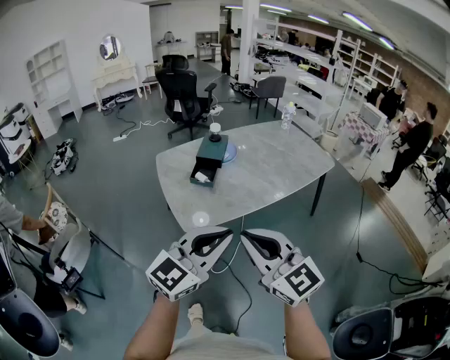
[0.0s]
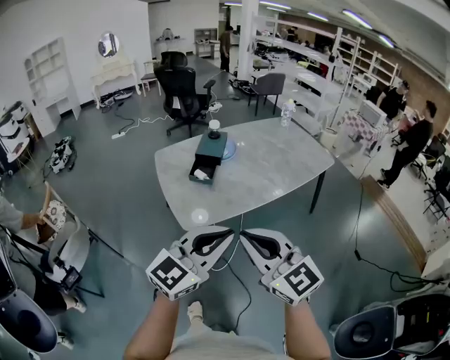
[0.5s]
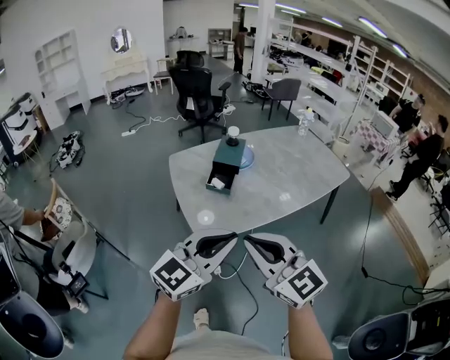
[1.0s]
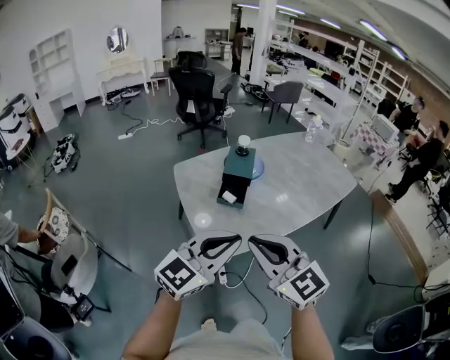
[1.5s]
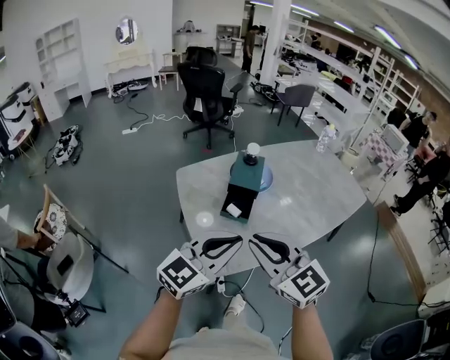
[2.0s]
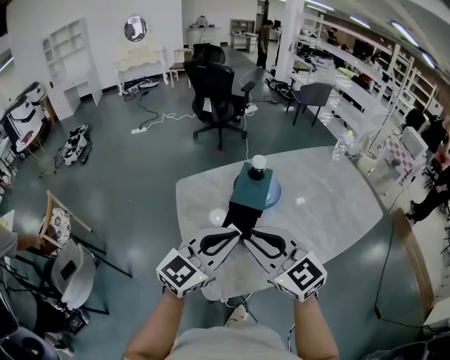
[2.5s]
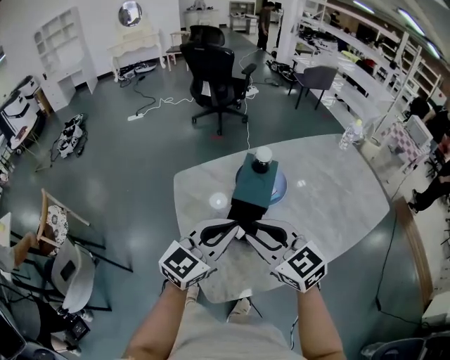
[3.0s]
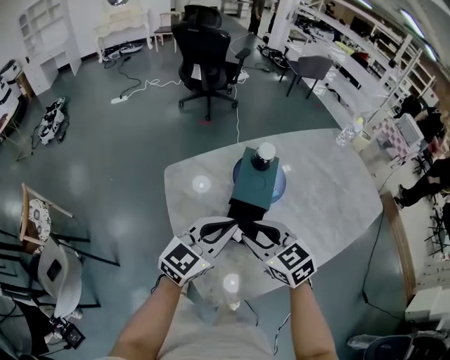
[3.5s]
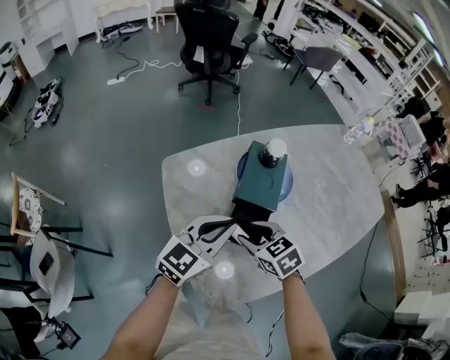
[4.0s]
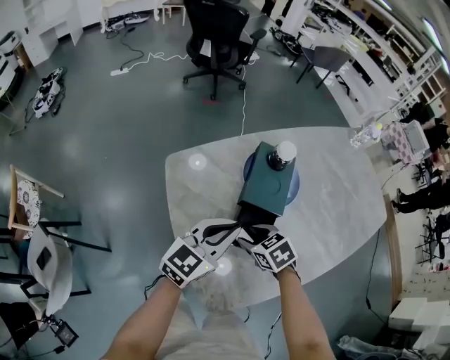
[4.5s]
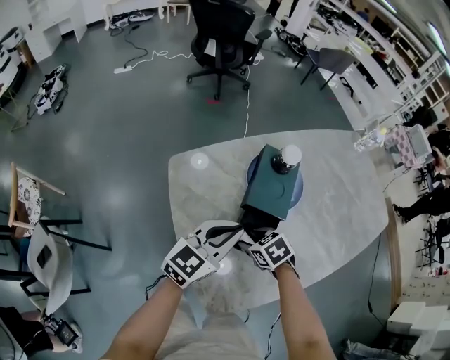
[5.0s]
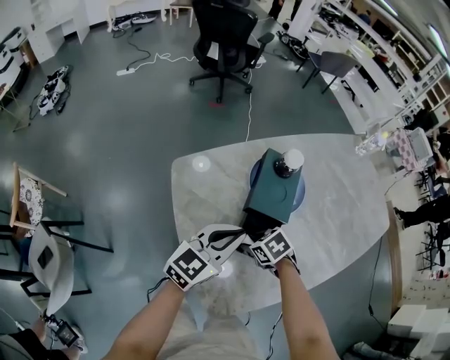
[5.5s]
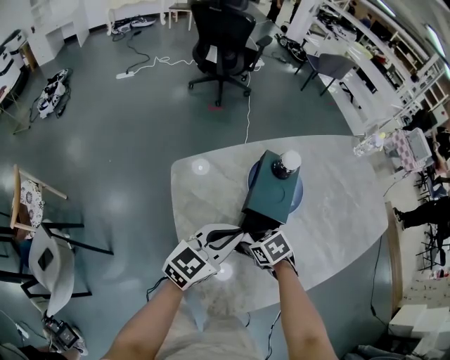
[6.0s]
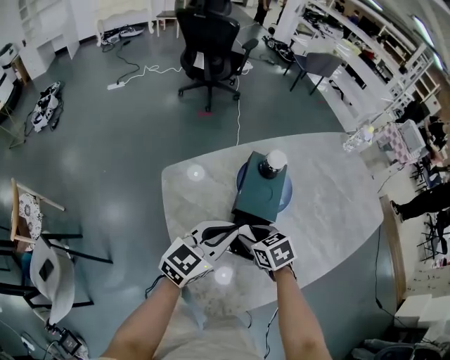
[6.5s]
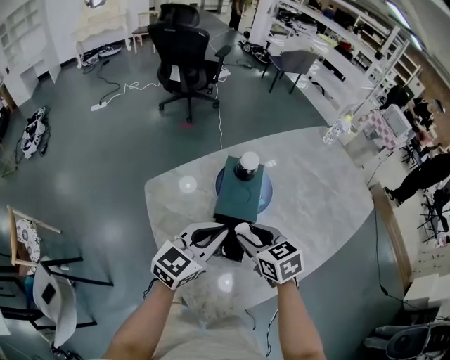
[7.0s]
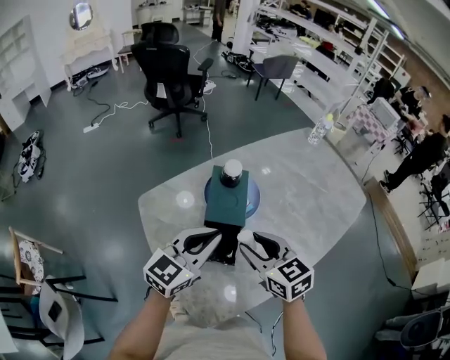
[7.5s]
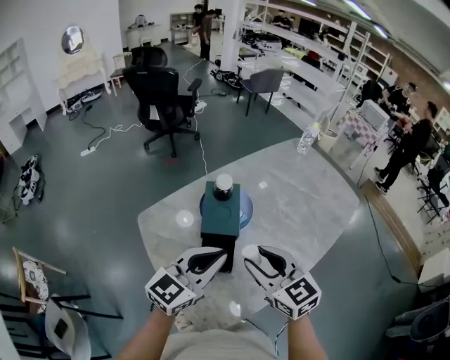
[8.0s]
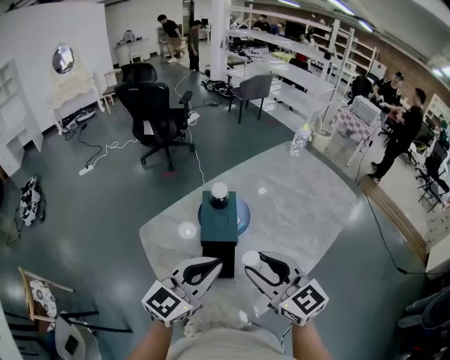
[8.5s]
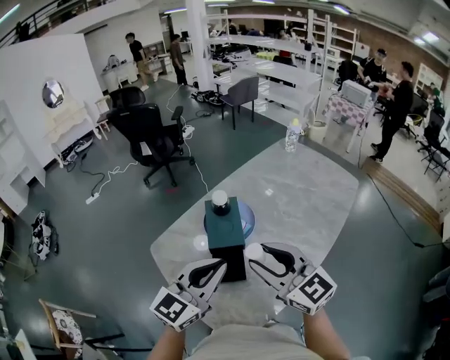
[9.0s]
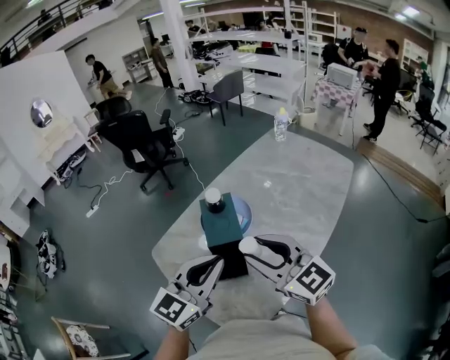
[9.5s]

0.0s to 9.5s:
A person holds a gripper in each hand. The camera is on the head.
0.0s to 2.0s: Both grippers travel together forward and to the left, some 30 cm.
2.0s to 4.0s: The grippers both shift forward and downward by roughly 35 cm. The right gripper tilts its fingers some 40 degrees downward, and opens up.
4.0s to 5.5s: The right gripper goes some 10 cm downward, and rotates approximately 30 degrees.
5.5s to 7.5s: The right gripper is displaced upward by some 20 cm, and angles its fingers upward, by some 40 degrees. The left gripper shifts roughly 10 cm upward.
7.5s to 9.5s: The grippers both shift upward and backward by roughly 10 cm. The right gripper turns by about 30 degrees.

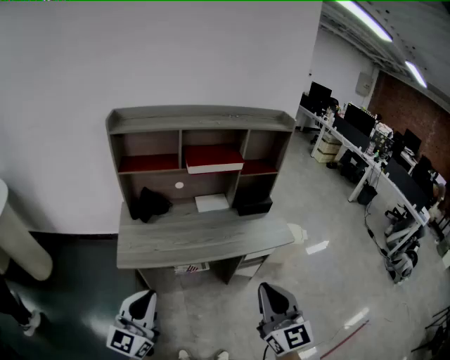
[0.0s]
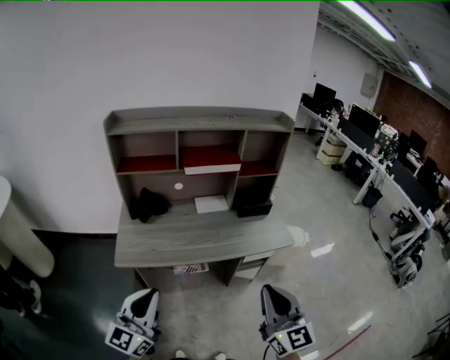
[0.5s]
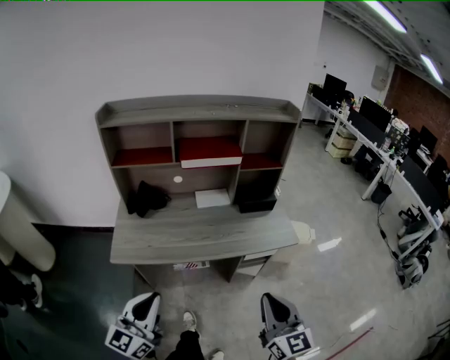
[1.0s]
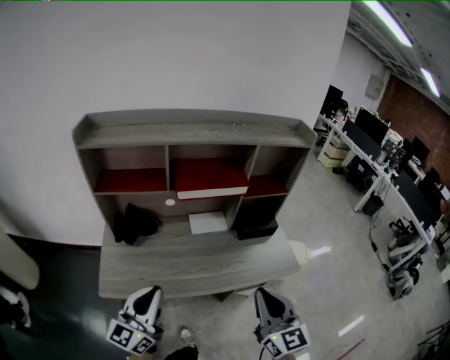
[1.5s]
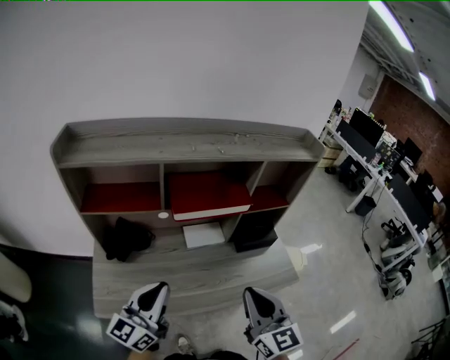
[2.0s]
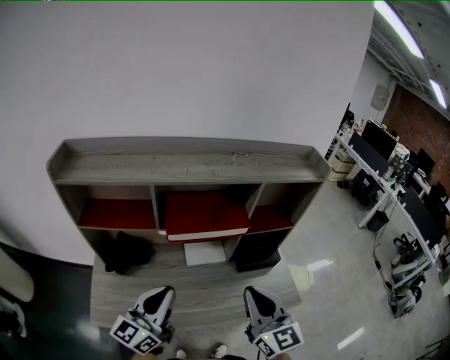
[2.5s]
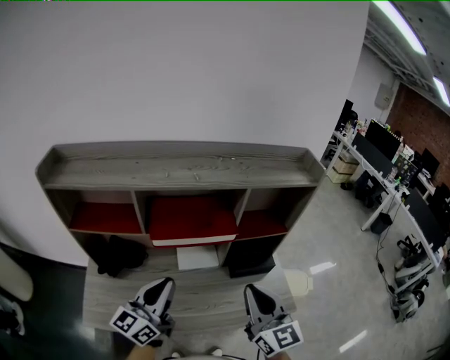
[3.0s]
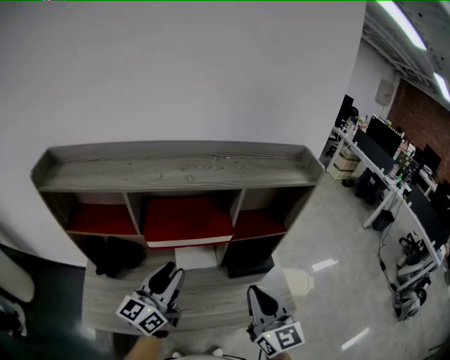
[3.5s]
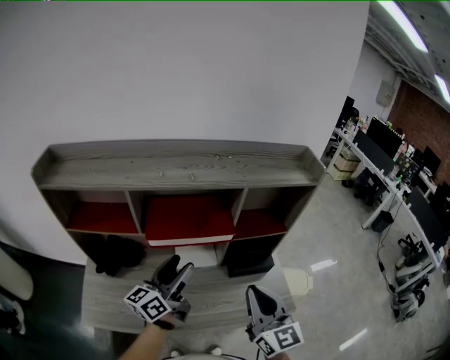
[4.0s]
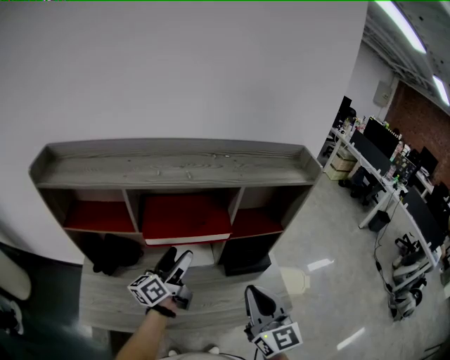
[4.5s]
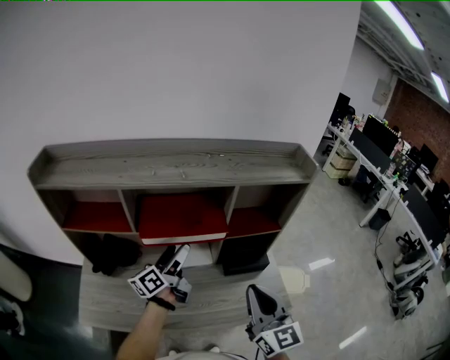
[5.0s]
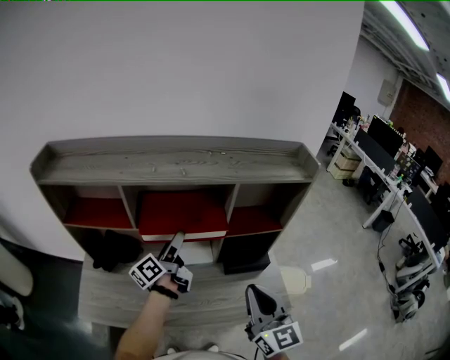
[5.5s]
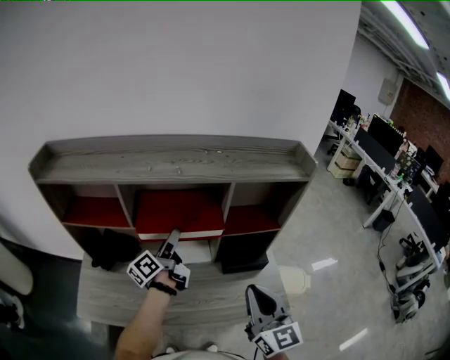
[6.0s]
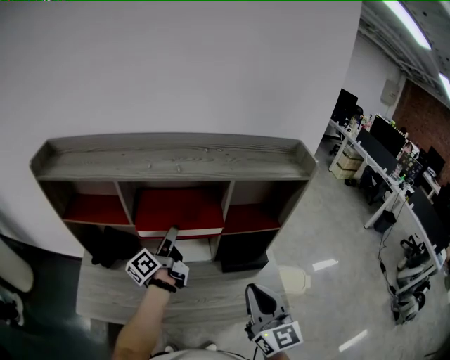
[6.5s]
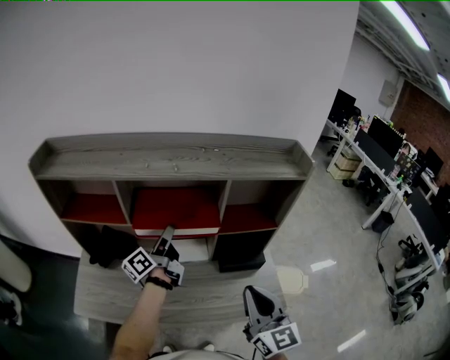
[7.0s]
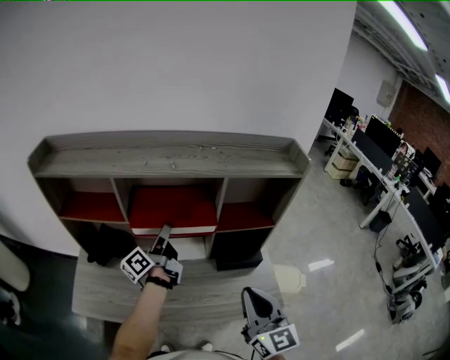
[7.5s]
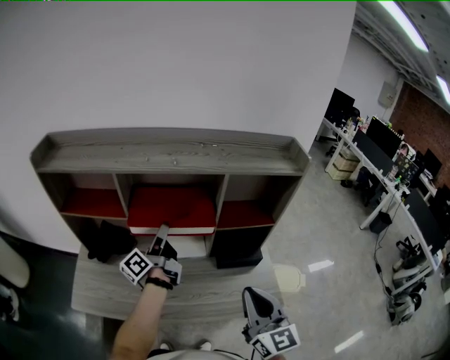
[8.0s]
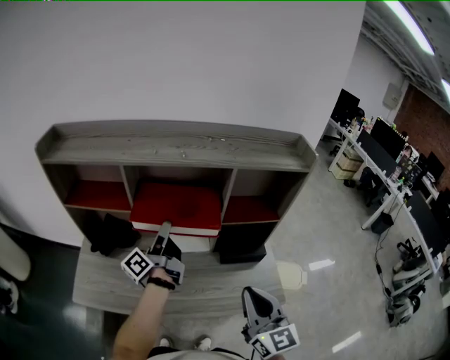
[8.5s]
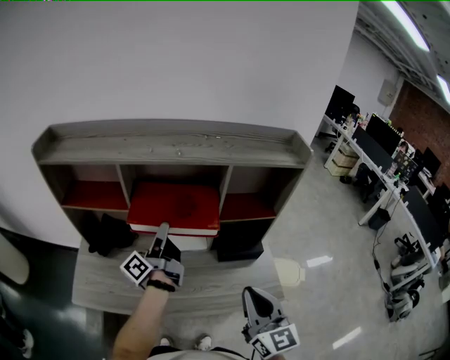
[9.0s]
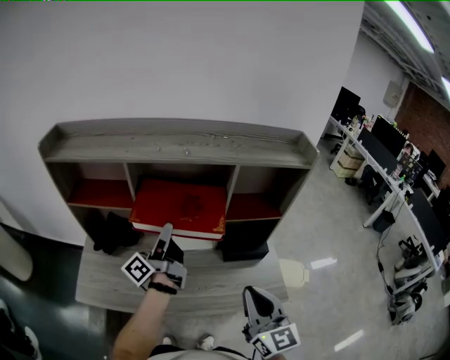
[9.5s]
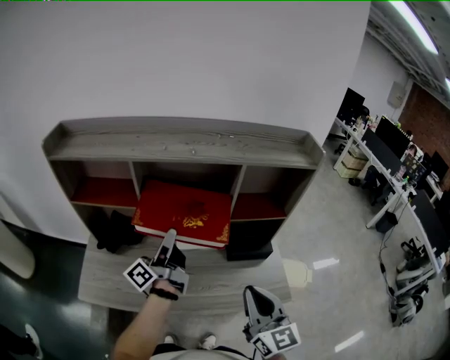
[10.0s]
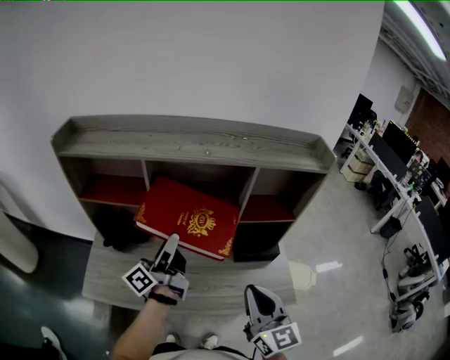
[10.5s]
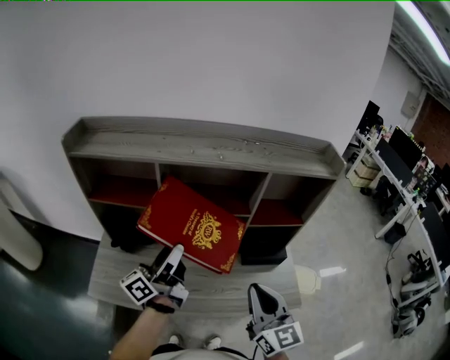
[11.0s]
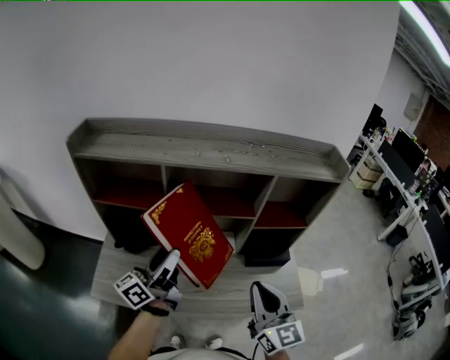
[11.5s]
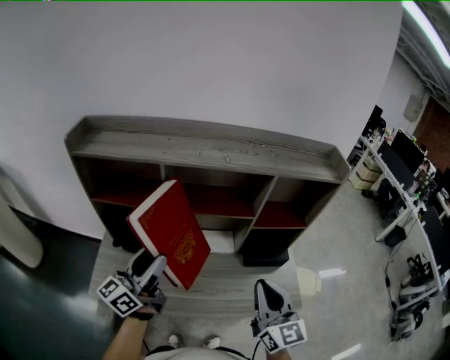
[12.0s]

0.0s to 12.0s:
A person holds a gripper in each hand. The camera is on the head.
0.0s to 2.0s: Both grippers travel together forward, about 25 cm.
2.0s to 4.0s: Both grippers move forward and to the right, about 15 cm. The left gripper opens up.
4.0s to 6.0s: The left gripper heads forward, covering approximately 10 cm, swivels roughly 30 degrees, and opens.
6.0s to 8.0s: The left gripper closes.
8.0s to 10.0s: The left gripper is displaced backward by approximately 5 cm.
10.0s to 12.0s: The left gripper goes some 15 cm to the left and backward, and changes its angle by roughly 40 degrees, while the right gripper moves roughly 5 cm.

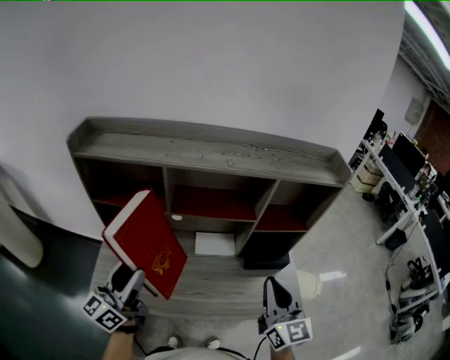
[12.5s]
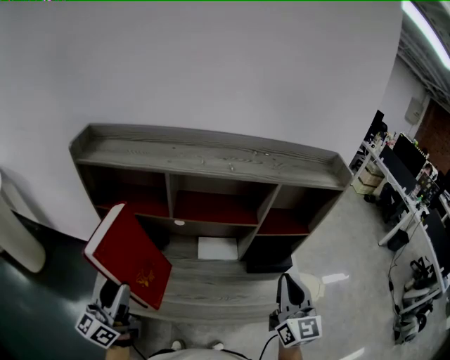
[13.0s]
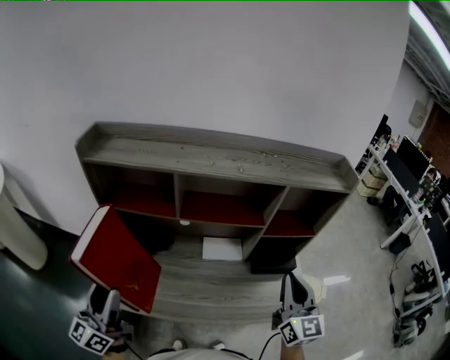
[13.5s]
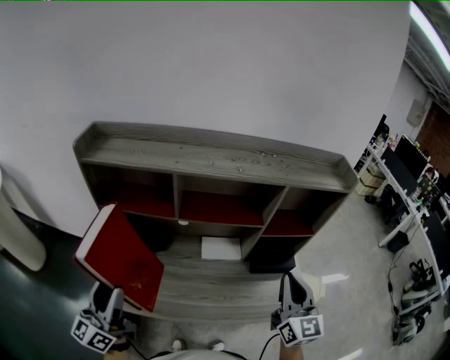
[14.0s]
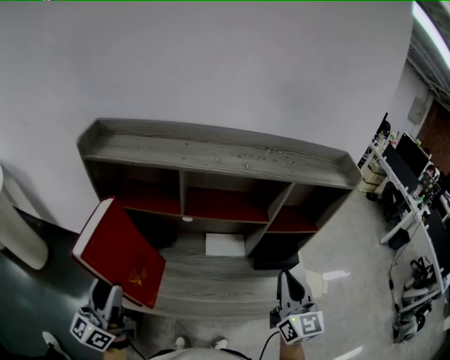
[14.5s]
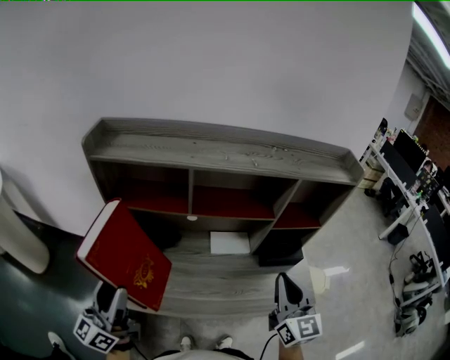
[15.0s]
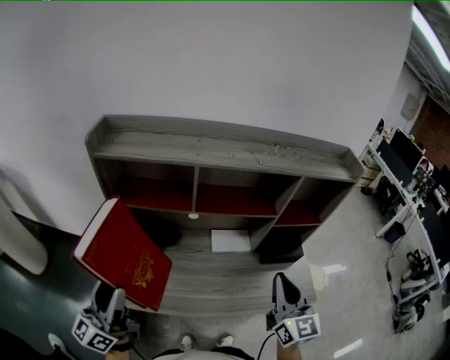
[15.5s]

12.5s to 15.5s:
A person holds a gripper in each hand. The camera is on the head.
12.5s to 14.0s: The left gripper heads to the left and backward, covering approximately 10 cm.
14.0s to 15.5s: The left gripper moves to the left, about 5 cm. Meanwhile the right gripper is displaced to the left by roughly 10 cm.

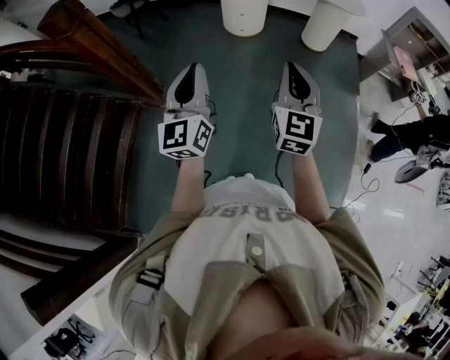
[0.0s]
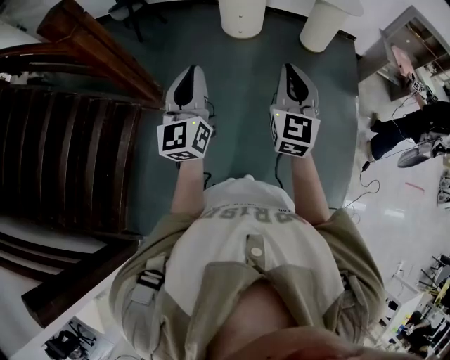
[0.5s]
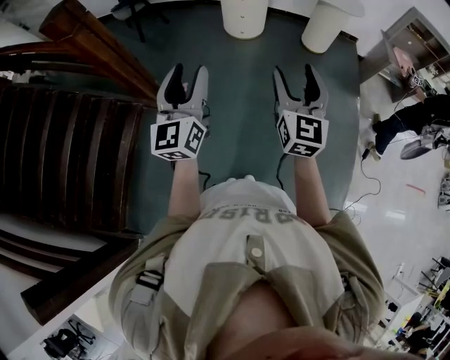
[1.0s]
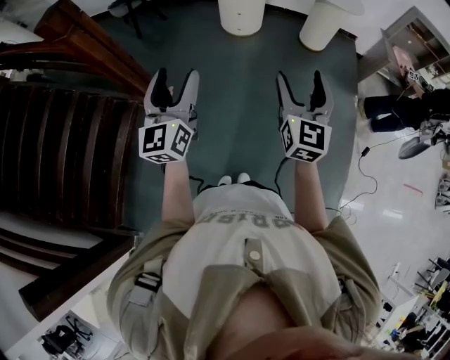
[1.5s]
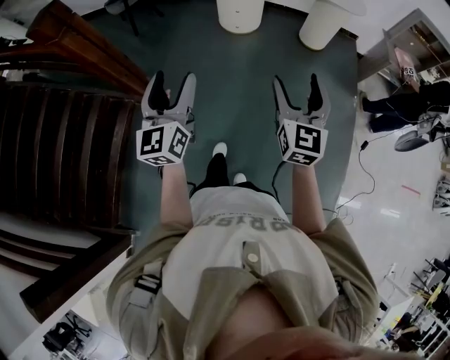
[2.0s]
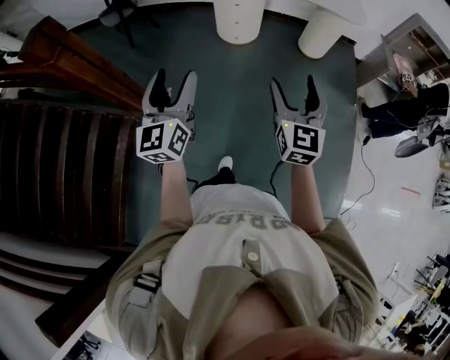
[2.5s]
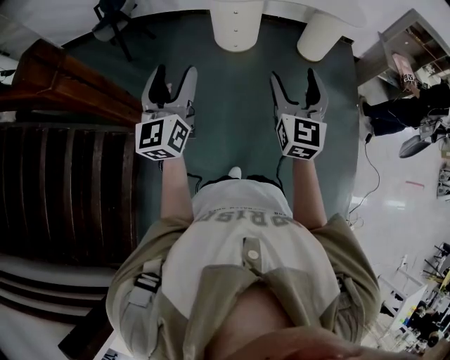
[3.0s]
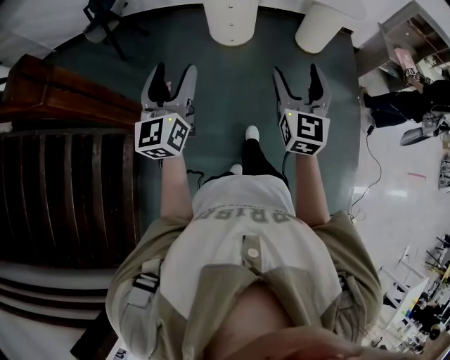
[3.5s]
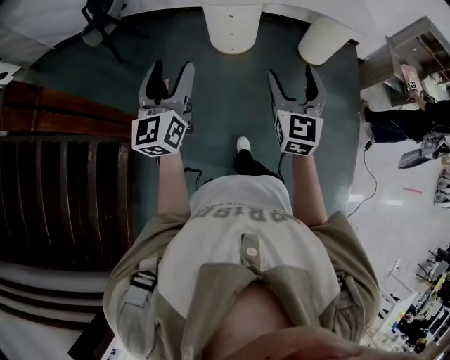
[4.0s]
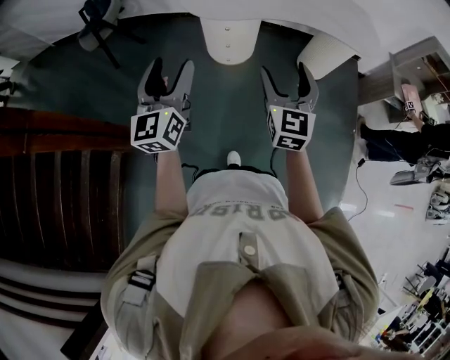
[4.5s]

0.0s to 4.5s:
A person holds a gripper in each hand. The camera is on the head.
0.0s to 2.0s: The right gripper is displaced to the right by some 5 cm, and opens; the left gripper opens its fingers.
2.0s to 4.5s: The pair of grippers is taken forward, approximately 40 cm.
